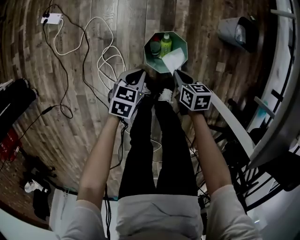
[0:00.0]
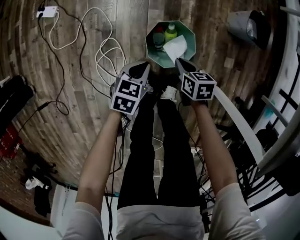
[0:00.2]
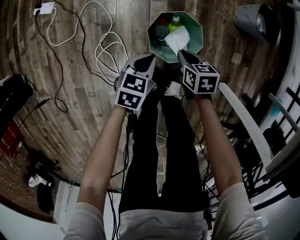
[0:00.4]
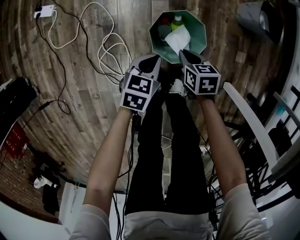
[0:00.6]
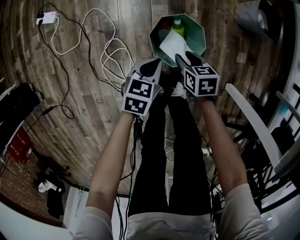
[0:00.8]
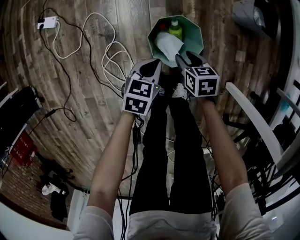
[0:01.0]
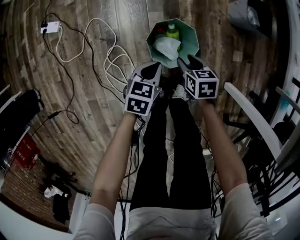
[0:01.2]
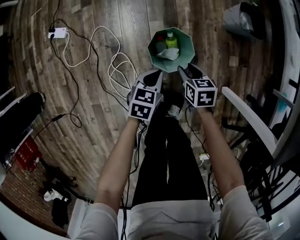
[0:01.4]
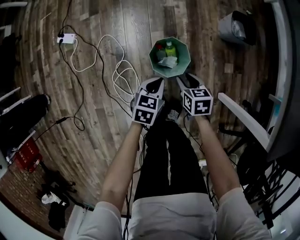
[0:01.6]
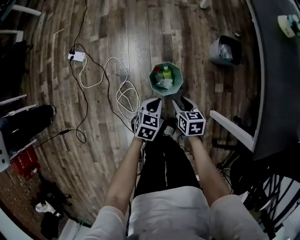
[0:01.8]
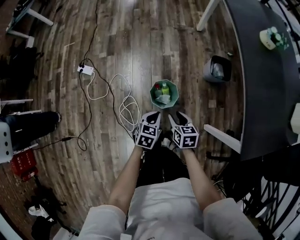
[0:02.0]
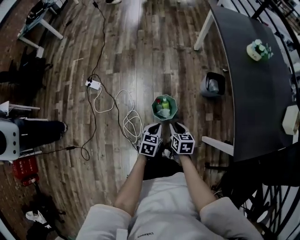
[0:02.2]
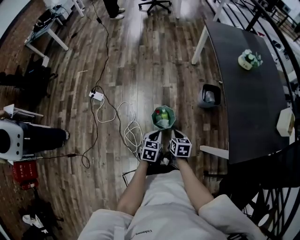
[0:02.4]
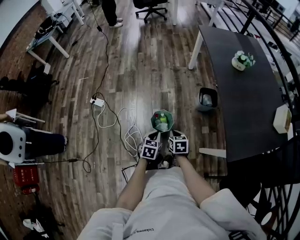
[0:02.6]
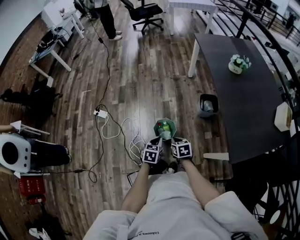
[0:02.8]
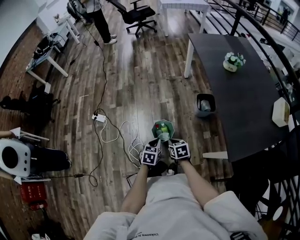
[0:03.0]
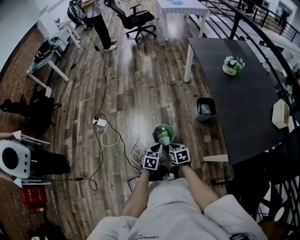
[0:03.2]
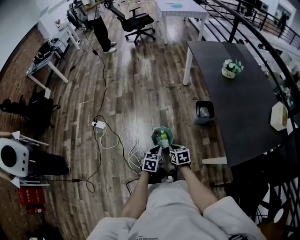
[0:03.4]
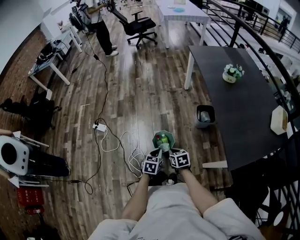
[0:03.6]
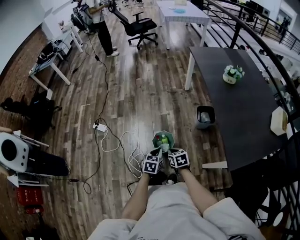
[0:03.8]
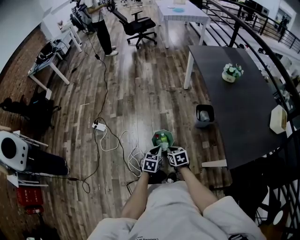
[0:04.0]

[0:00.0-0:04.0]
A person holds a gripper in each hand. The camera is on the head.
0:00.0 to 0:01.4: The right gripper goes downward and returns, roughly 10 cm each way, and opens up, while the left gripper travels to the right by roughly 5 cm, and travels downward and back again, about 10 cm each way.
0:01.4 to 0:02.6: Both grippers move upward, some 35 cm. The right gripper closes its fingers.
0:02.6 to 0:04.0: The grippers move only a little.

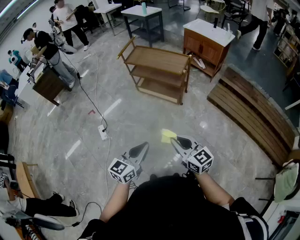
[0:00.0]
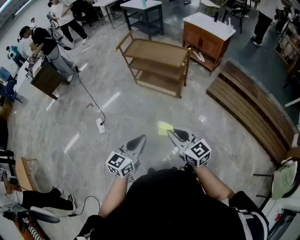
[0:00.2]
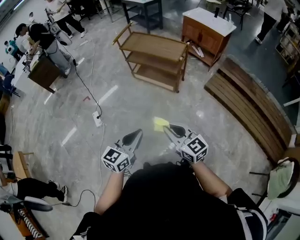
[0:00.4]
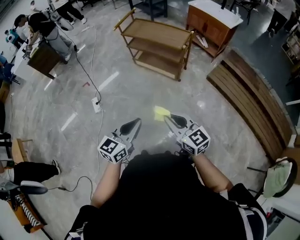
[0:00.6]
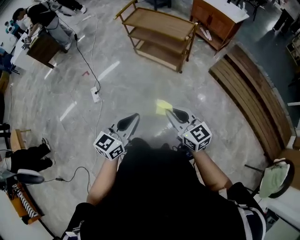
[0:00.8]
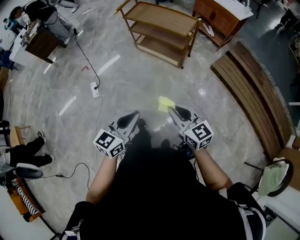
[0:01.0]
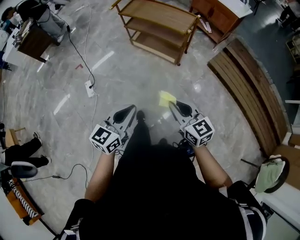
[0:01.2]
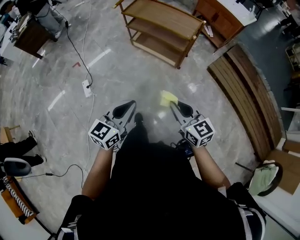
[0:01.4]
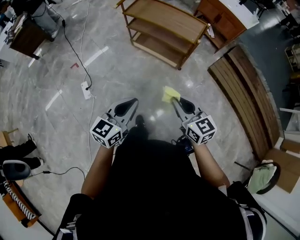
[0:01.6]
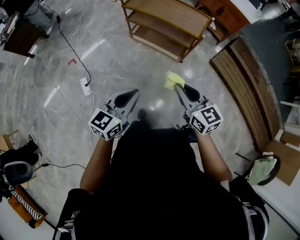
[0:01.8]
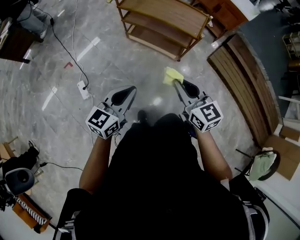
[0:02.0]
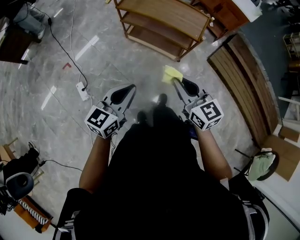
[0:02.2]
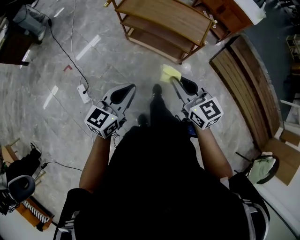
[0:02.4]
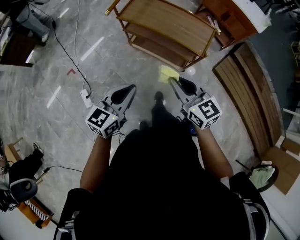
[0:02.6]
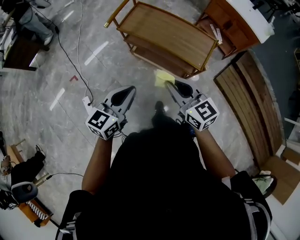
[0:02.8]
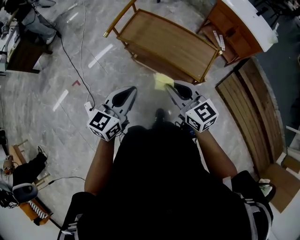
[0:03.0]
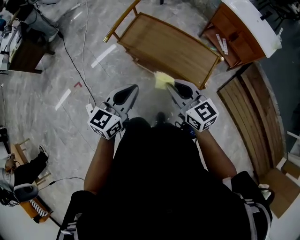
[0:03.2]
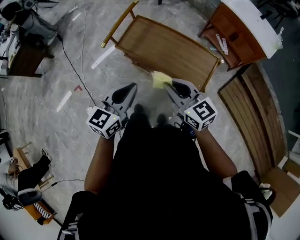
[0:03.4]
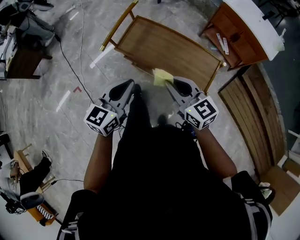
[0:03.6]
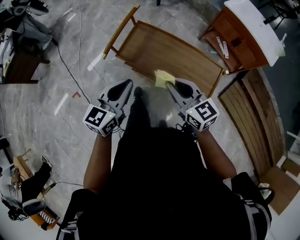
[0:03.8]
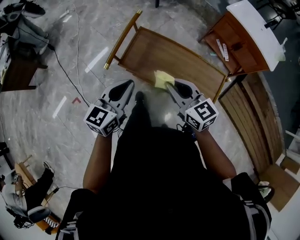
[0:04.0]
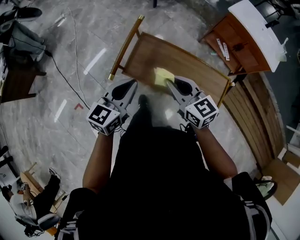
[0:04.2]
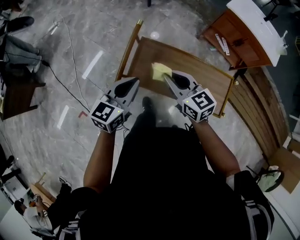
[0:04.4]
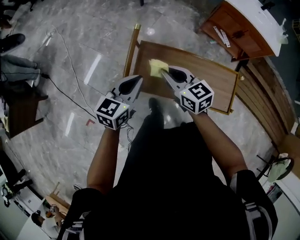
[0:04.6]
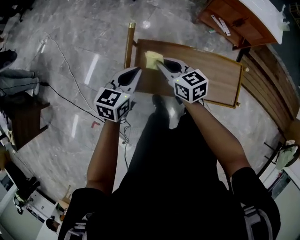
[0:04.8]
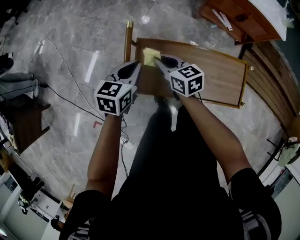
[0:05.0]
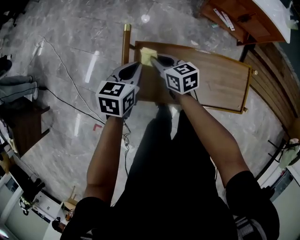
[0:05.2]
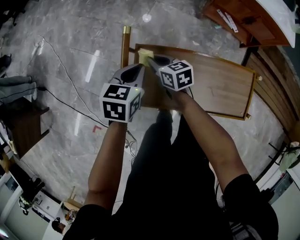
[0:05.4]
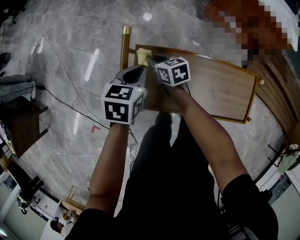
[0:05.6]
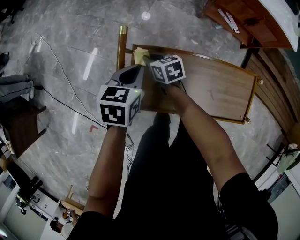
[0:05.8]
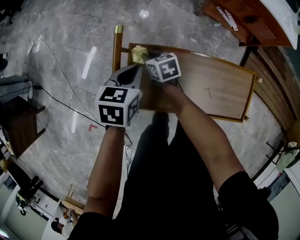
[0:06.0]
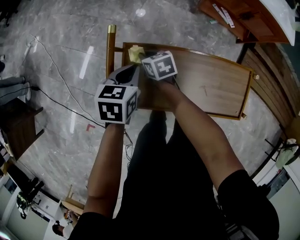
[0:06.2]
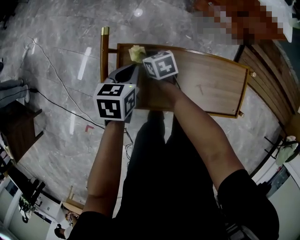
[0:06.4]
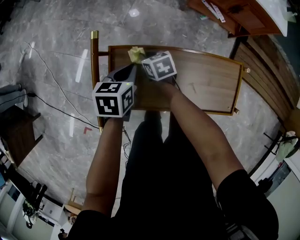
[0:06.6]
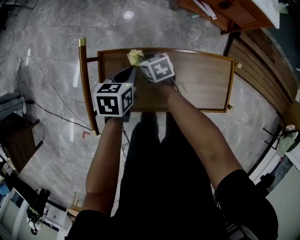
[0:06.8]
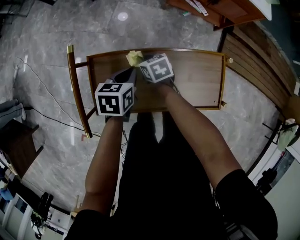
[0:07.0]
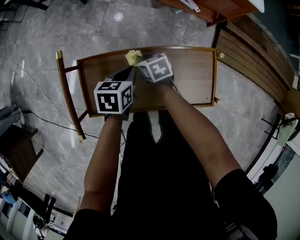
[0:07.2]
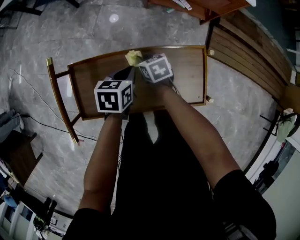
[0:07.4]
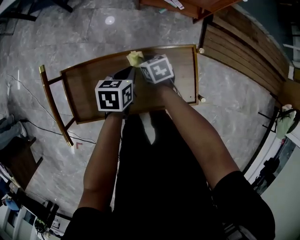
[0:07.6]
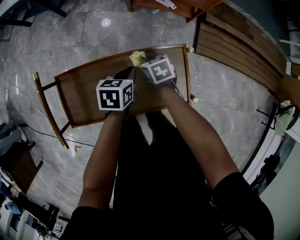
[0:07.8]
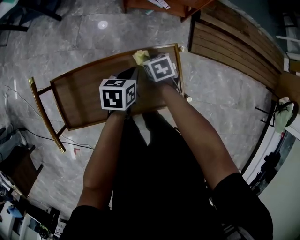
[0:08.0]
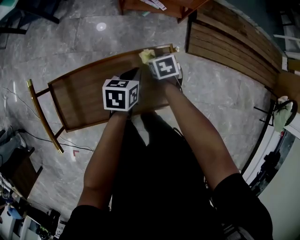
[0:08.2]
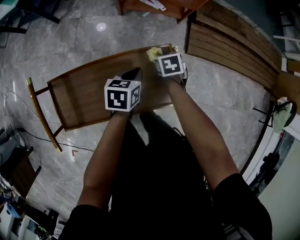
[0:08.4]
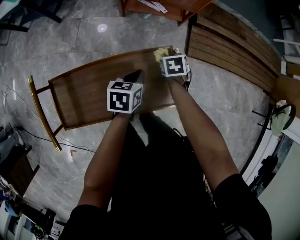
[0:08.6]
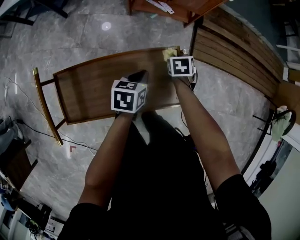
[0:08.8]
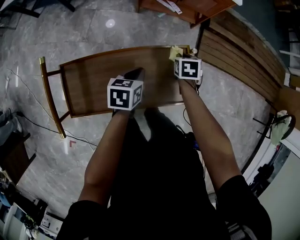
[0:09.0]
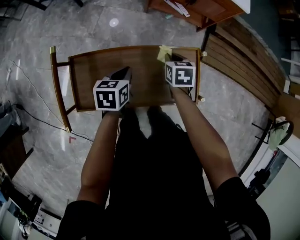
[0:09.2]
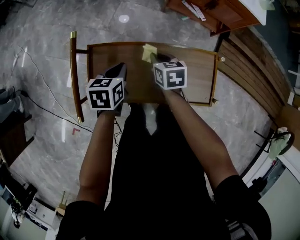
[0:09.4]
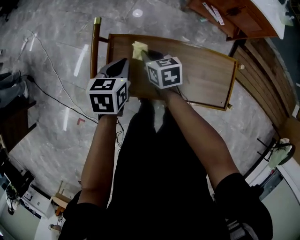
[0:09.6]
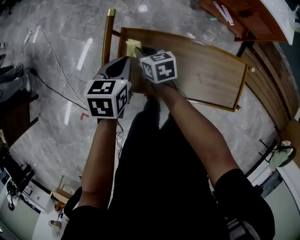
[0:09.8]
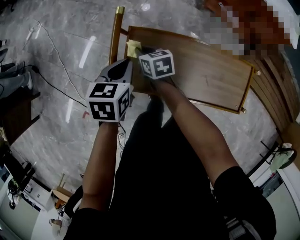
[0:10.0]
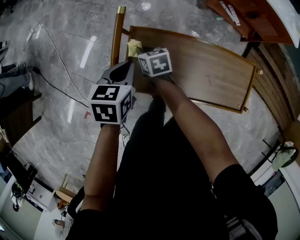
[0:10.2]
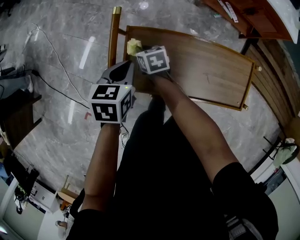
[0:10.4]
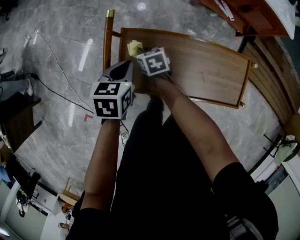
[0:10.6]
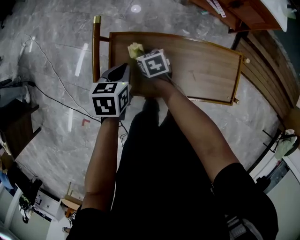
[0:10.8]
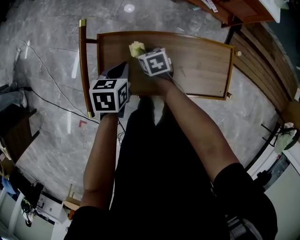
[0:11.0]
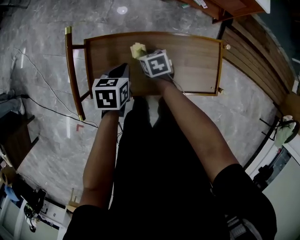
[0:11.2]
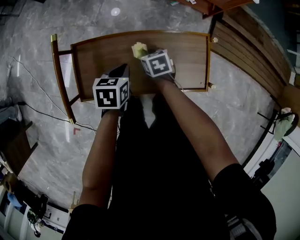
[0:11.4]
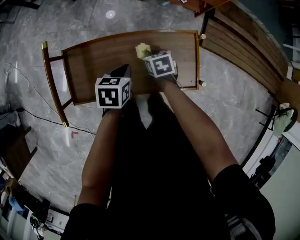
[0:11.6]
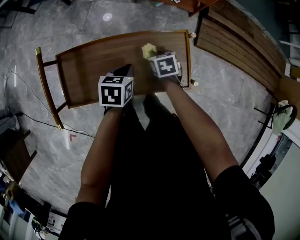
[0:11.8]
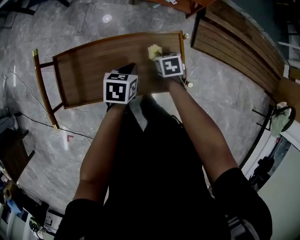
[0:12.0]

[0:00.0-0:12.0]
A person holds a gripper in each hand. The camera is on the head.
0:00.0 to 0:01.6: Both grippers move forward, about 20 cm.
0:01.6 to 0:03.0: The two grippers go roughly 35 cm forward.
0:03.0 to 0:04.4: Both grippers travel together forward, approximately 35 cm.
0:04.4 to 0:06.0: The left gripper is displaced forward and downward by some 25 cm, and turns by roughly 30 degrees; the right gripper moves downward and forward, about 35 cm, and turns by approximately 30 degrees.
0:06.0 to 0:07.6: Both grippers travel together to the right, roughly 30 cm.
0:07.6 to 0:09.0: The right gripper moves some 20 cm, and changes its angle by some 30 degrees.
0:09.0 to 0:10.4: The right gripper moves about 50 cm, and swivels approximately 40 degrees. Meanwhile the left gripper ends up about 35 cm from where it was.
0:10.4 to 0:12.0: The left gripper ends up about 35 cm from where it was, while the right gripper ends up about 50 cm from where it was, and swivels about 30 degrees.

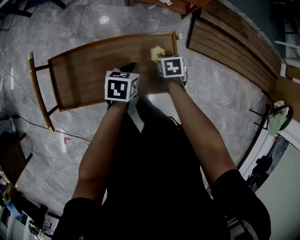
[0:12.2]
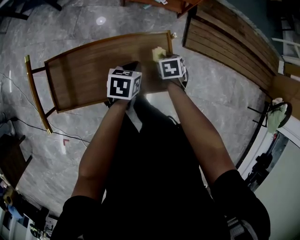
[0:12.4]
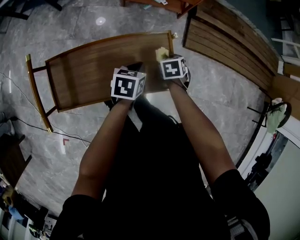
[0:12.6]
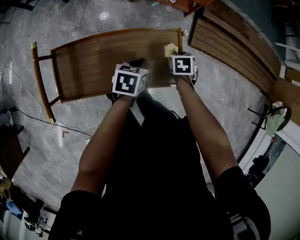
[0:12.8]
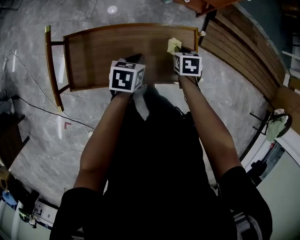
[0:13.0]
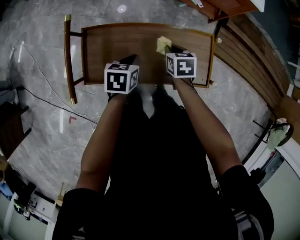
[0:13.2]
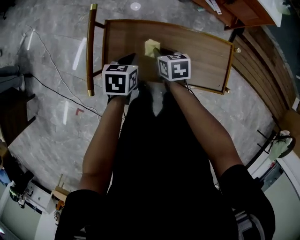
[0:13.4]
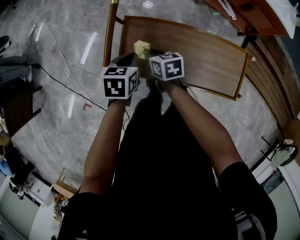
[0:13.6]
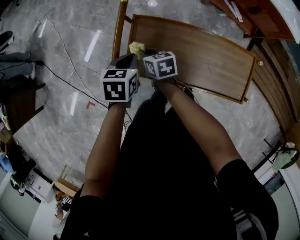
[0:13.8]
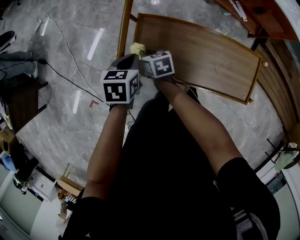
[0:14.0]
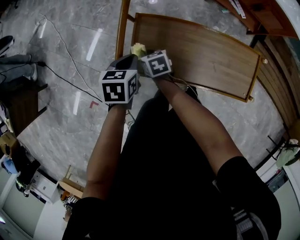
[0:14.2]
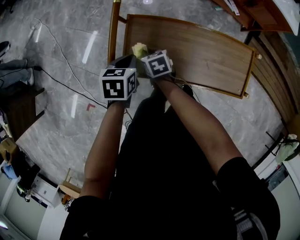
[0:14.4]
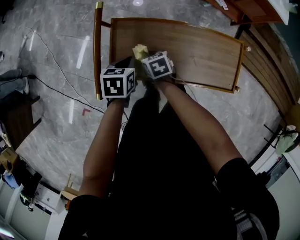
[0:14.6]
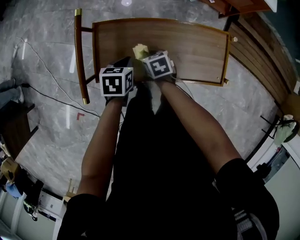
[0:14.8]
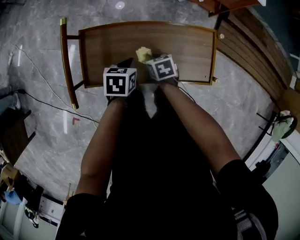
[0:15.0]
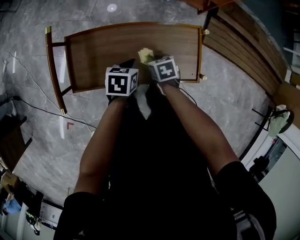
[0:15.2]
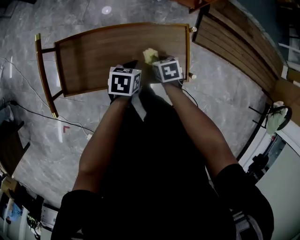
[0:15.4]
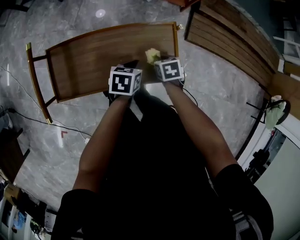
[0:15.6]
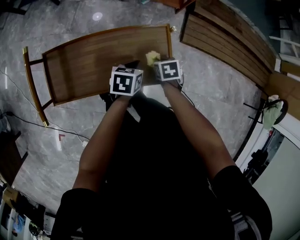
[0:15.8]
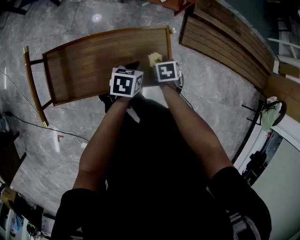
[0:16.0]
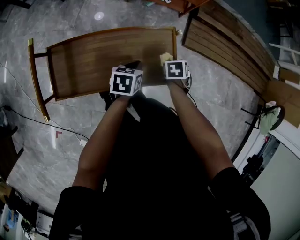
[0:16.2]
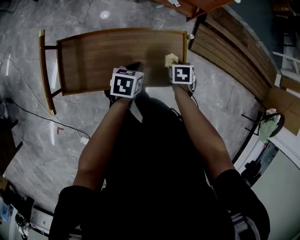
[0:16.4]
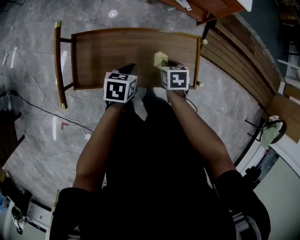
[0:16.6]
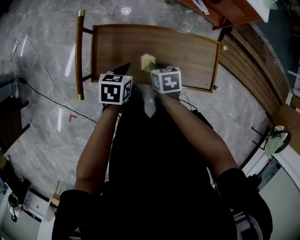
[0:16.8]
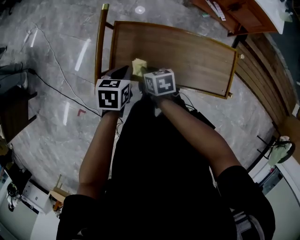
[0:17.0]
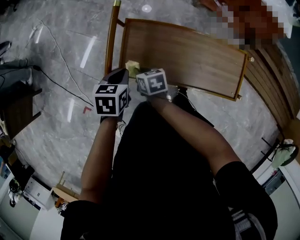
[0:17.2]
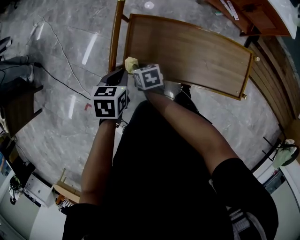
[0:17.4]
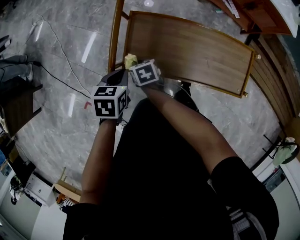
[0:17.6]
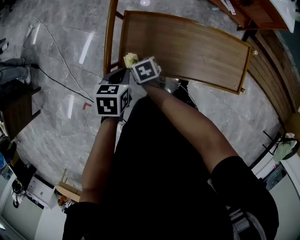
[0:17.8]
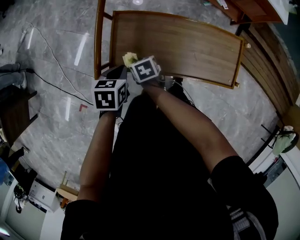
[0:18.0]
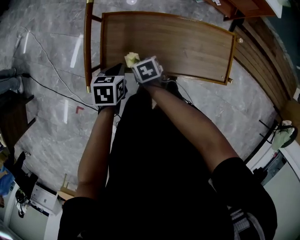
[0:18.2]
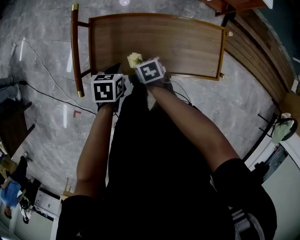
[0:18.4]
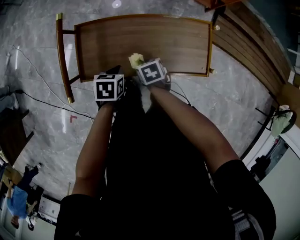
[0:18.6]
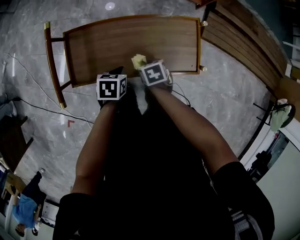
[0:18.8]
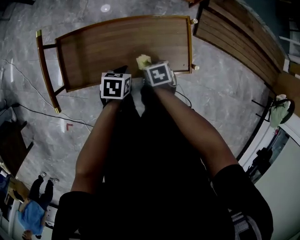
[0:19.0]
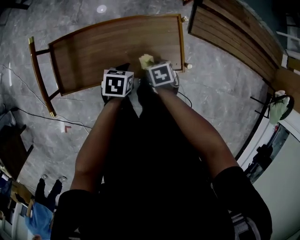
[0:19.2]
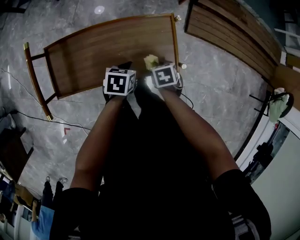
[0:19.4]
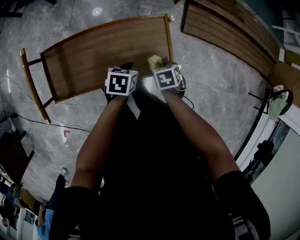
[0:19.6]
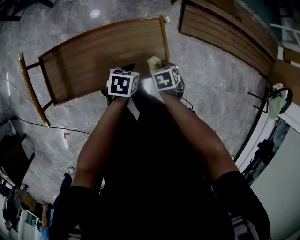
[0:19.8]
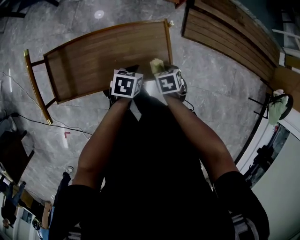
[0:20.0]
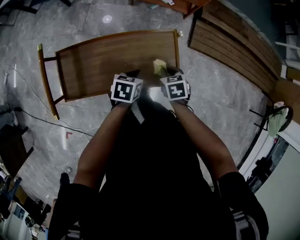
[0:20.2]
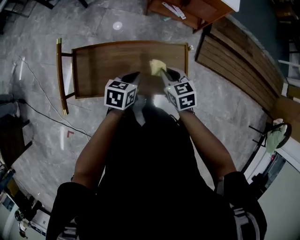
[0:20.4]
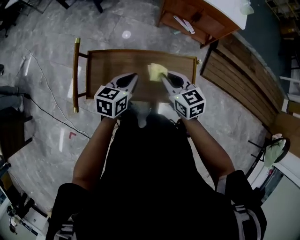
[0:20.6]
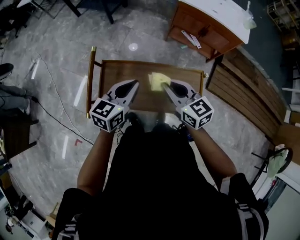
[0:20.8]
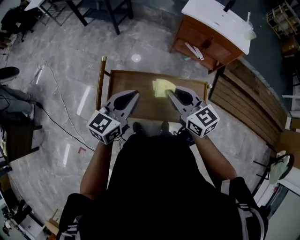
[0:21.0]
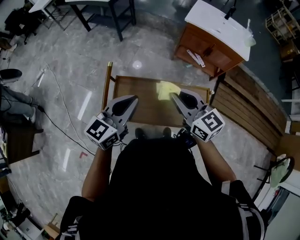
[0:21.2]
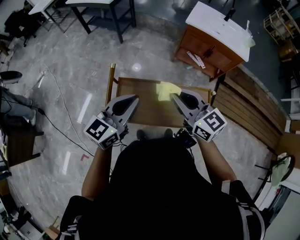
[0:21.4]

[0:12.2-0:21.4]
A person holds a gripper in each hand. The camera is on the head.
0:12.2 to 0:13.8: The right gripper shifts by approximately 50 cm, and turns by about 40 degrees; the left gripper shifts by approximately 40 cm, and rotates some 20 degrees.
0:13.8 to 0:15.2: The right gripper shifts by roughly 35 cm, and rotates about 20 degrees. The left gripper moves about 25 cm.
0:15.2 to 0:16.8: The left gripper changes place by approximately 10 cm.
0:16.8 to 0:18.4: The left gripper travels to the left and back again, approximately 20 cm each way, while the right gripper moves downward, roughly 5 cm, and moves approximately 25 cm to the left and comes back.
0:18.4 to 0:19.8: The left gripper shifts by roughly 30 cm, and rotates roughly 20 degrees; the right gripper shifts by about 35 cm, and changes its angle by about 20 degrees.
0:19.8 to 0:21.4: The grippers both shift upward by roughly 35 cm. The left gripper points its fingers some 50 degrees further upward. Meanwhile the right gripper points its fingers about 70 degrees further upward.
